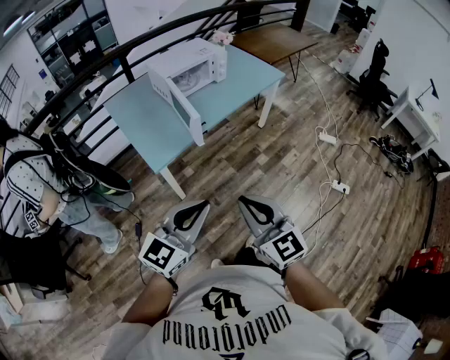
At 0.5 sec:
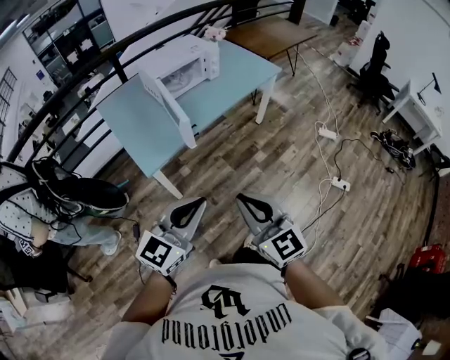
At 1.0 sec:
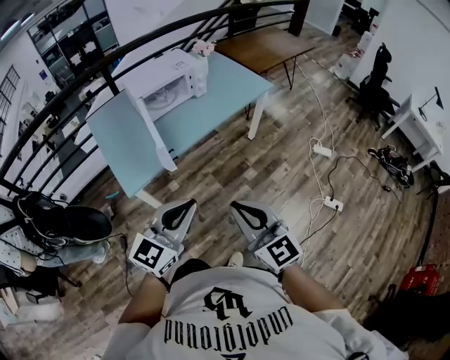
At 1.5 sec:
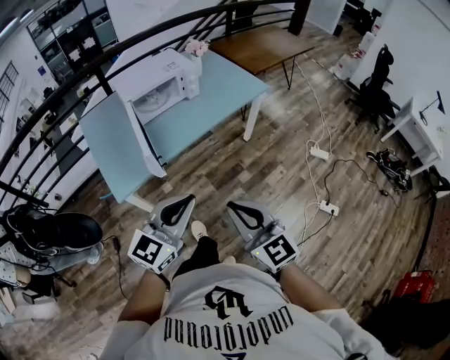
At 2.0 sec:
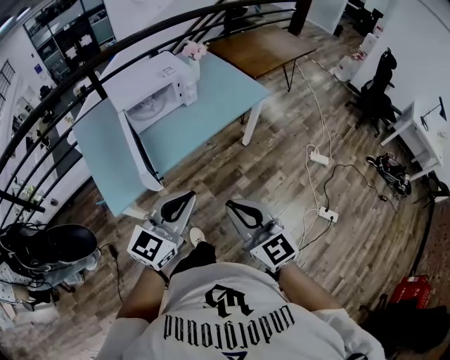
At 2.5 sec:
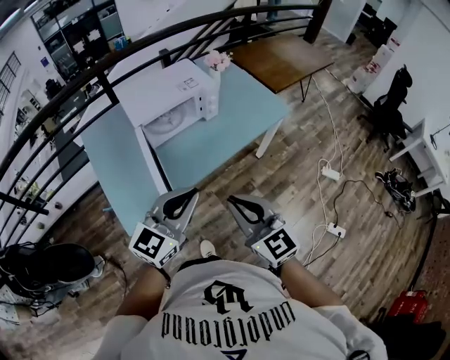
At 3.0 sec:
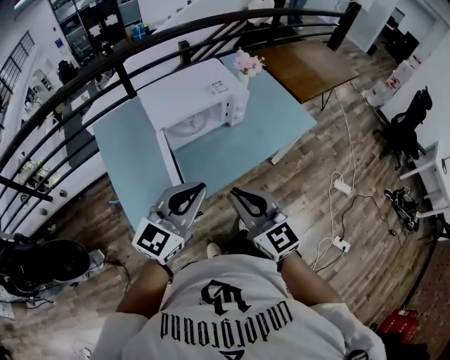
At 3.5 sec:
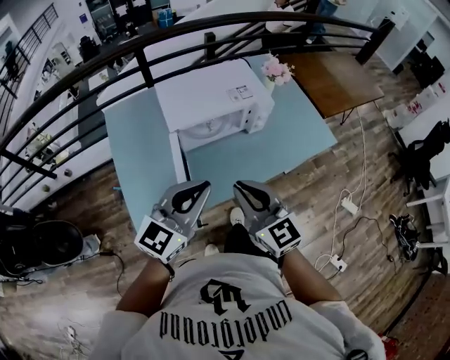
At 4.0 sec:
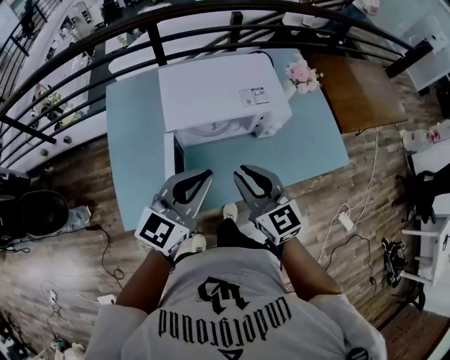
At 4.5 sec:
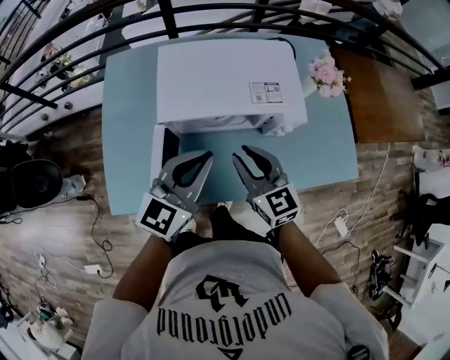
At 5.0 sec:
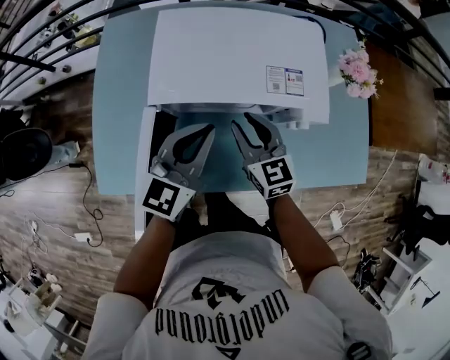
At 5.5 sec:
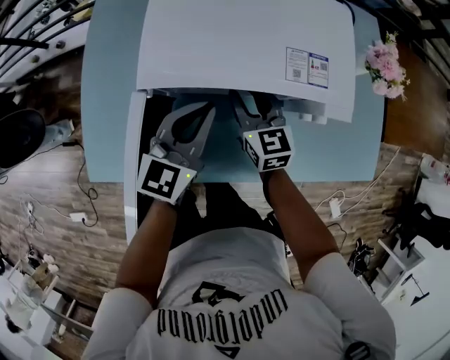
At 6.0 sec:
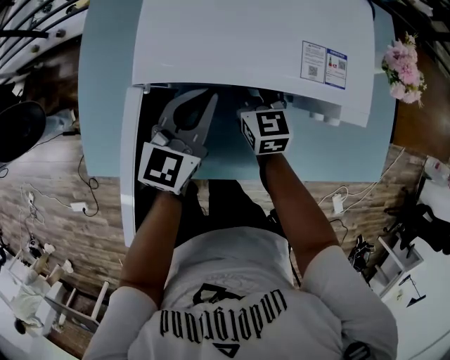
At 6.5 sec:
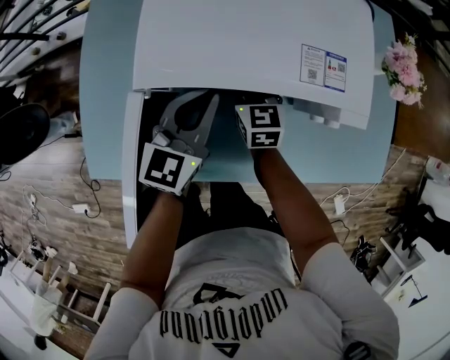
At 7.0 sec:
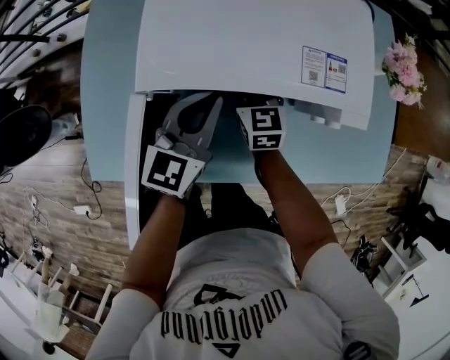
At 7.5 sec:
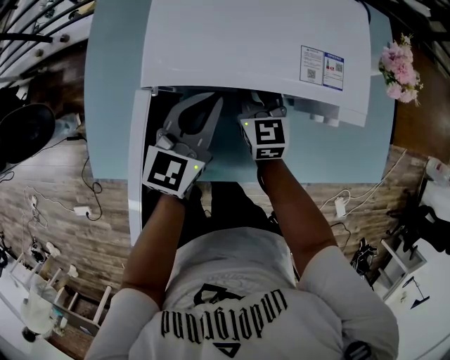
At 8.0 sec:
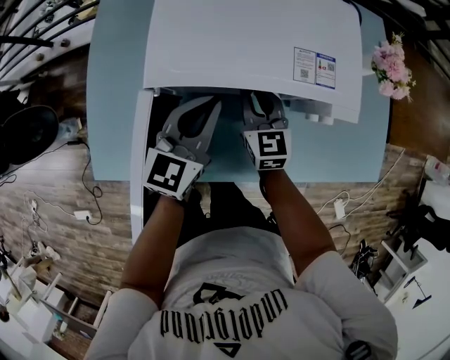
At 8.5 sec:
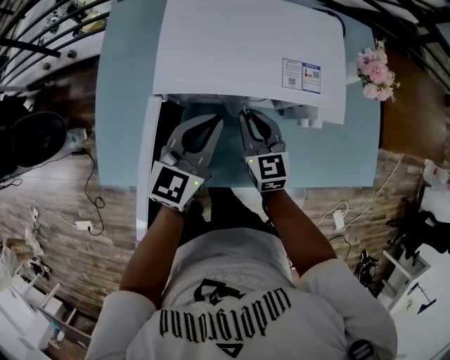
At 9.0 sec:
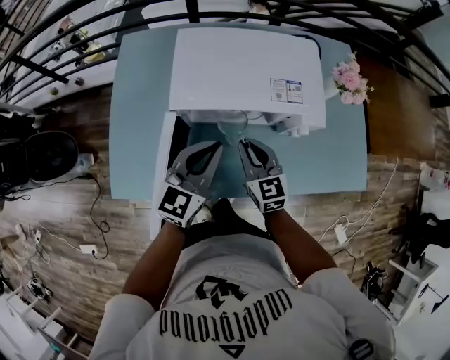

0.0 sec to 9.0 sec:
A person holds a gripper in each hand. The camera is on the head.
0.0 sec to 2.0 sec: Both grippers travel together forward and to the right, approximately 35 cm.
2.0 sec to 4.5 sec: The pair of grippers is taken roughly 50 cm. The left gripper swivels approximately 30 degrees. The right gripper turns by some 30 degrees.
4.5 sec to 7.0 sec: Both grippers travel together downward and forward, approximately 25 cm.
7.0 sec to 9.0 sec: The left gripper shifts some 15 cm upward and backward. The right gripper travels backward and upward by approximately 20 cm.

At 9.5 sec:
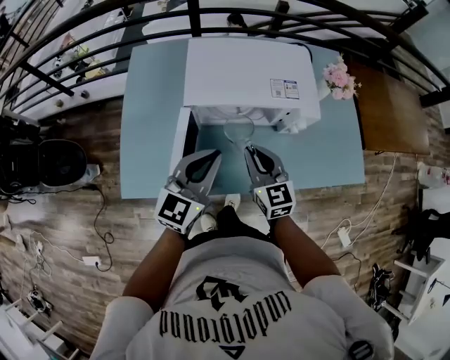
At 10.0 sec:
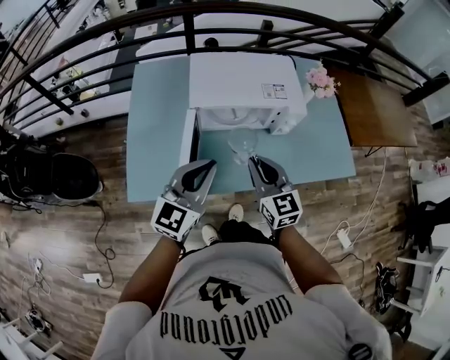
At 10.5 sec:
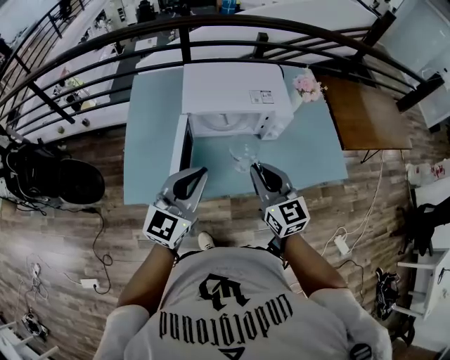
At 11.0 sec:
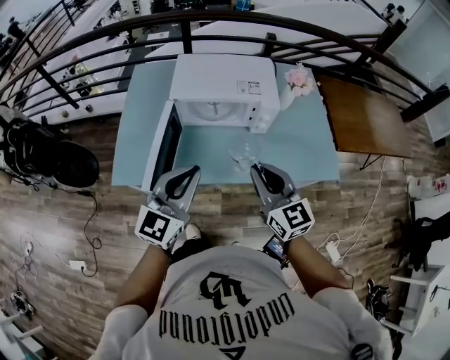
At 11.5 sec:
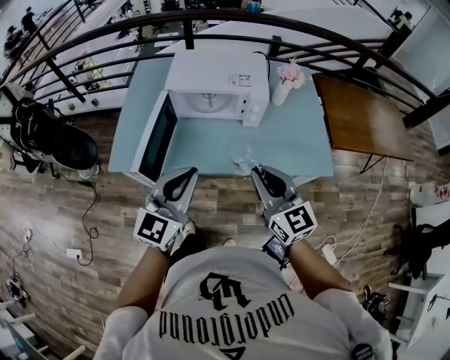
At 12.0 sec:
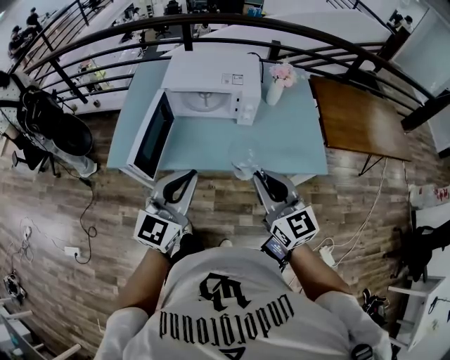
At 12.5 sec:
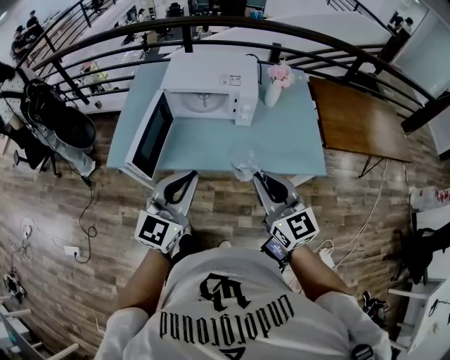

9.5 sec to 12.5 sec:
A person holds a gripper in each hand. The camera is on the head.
9.5 sec to 11.0 sec: The right gripper is displaced backward, upward and to the right by roughly 25 cm, while the left gripper heads backward and upward, covering roughly 20 cm.
11.0 sec to 12.5 sec: The grippers both shift backward and to the right by roughly 15 cm.

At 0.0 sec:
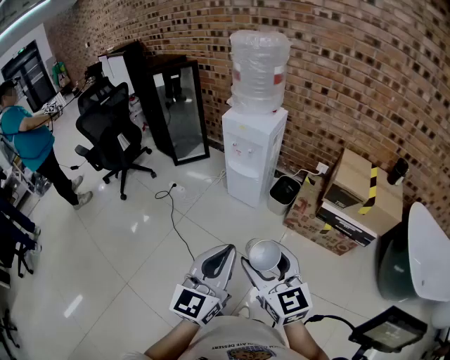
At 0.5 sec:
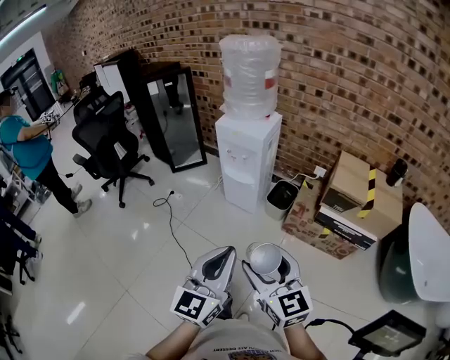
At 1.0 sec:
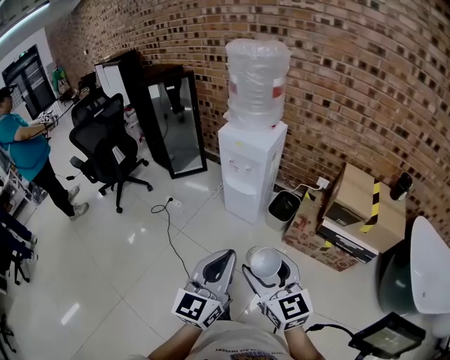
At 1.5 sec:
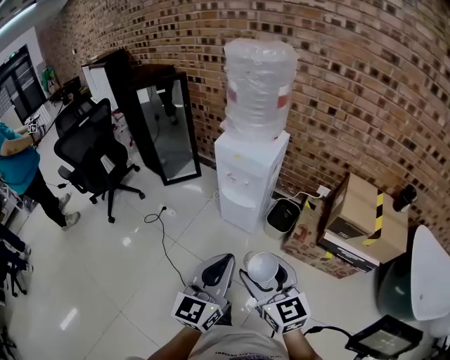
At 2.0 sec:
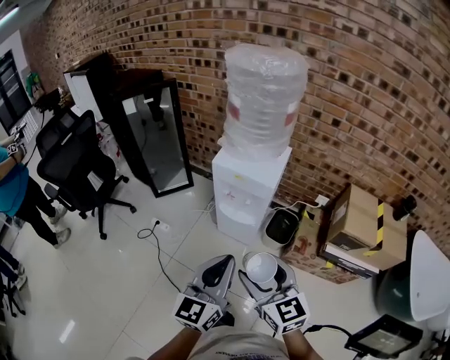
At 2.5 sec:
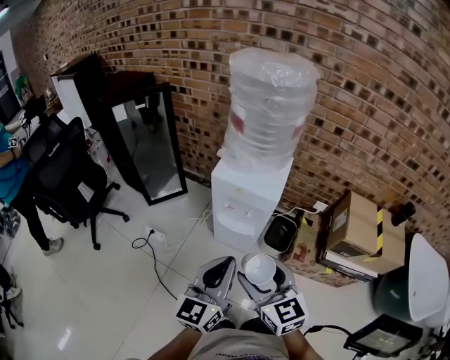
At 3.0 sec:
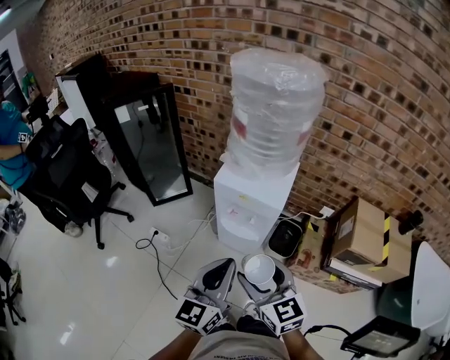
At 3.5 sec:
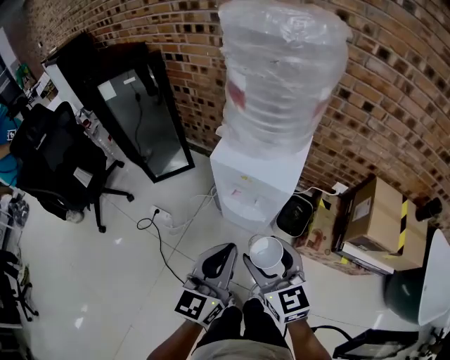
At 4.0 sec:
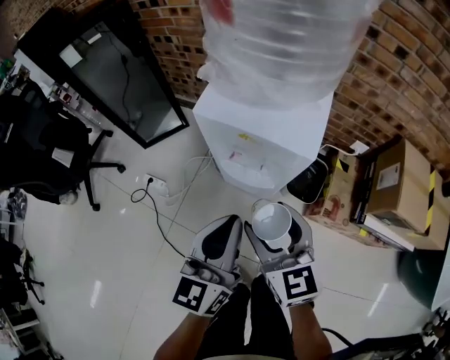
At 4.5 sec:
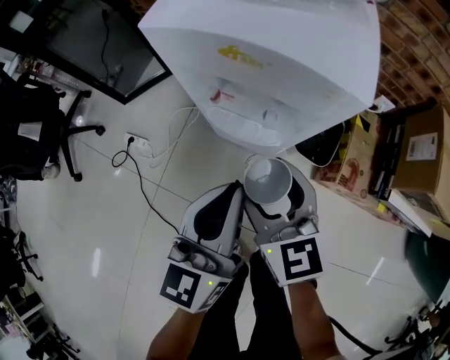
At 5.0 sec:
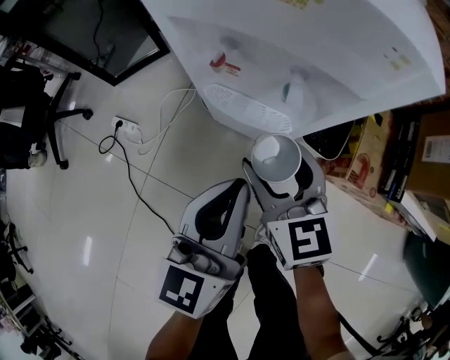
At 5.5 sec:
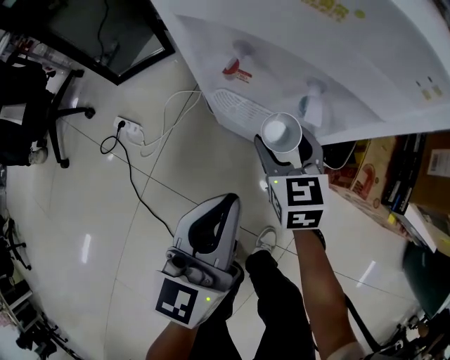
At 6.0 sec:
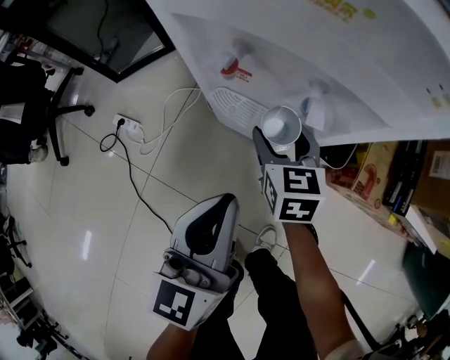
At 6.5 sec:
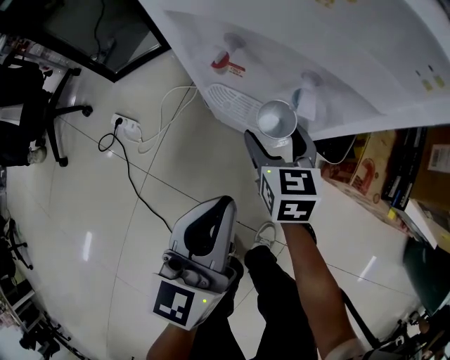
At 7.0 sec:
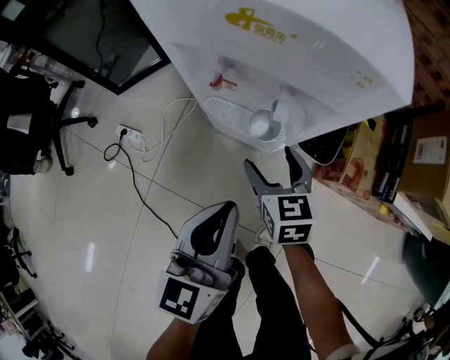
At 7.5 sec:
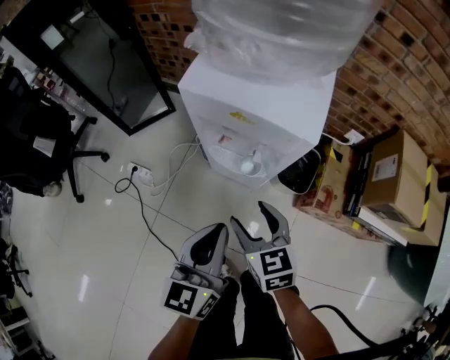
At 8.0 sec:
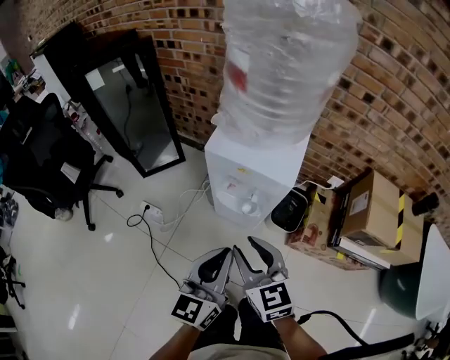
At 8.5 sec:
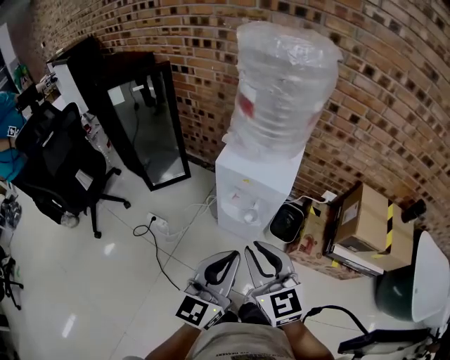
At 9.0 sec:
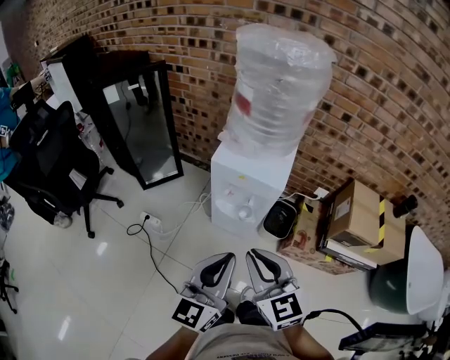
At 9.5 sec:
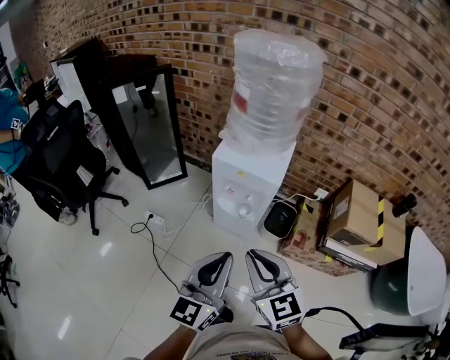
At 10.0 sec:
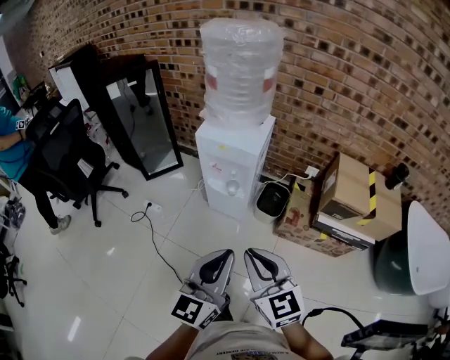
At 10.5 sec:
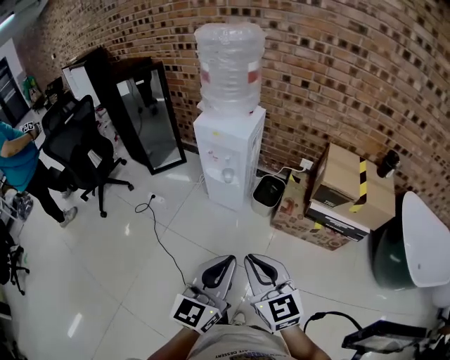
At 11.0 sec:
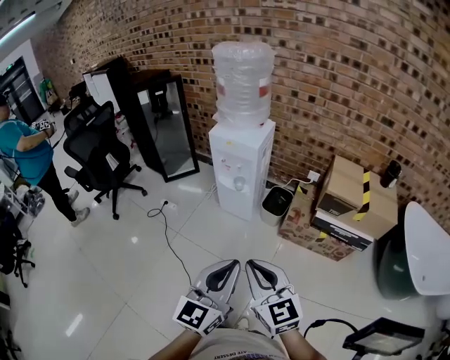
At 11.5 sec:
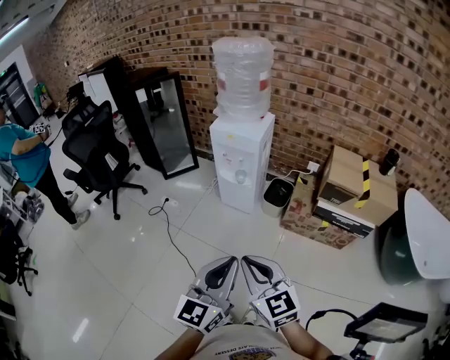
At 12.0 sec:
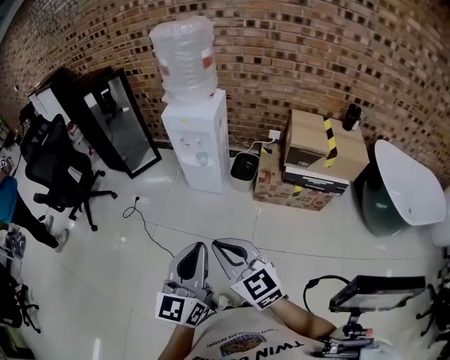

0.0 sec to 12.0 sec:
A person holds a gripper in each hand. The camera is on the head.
0.0 sec to 2.0 sec: Both grippers travel together forward, about 30 cm.
2.0 sec to 4.0 sec: Both grippers move forward and downward, approximately 25 cm.
4.0 sec to 6.0 sec: The left gripper heads downward, covering roughly 20 cm. Meanwhile the right gripper travels downward and forward by about 35 cm.
6.0 sec to 8.0 sec: The left gripper travels upward by some 25 cm. The right gripper heads upward and backward, covering approximately 40 cm, turns by about 20 degrees, and closes up.
8.0 sec to 10.0 sec: Both grippers travel together backward and upward, about 25 cm. The right gripper closes up.
10.0 sec to 12.0 sec: The two grippers go about 20 cm backward.

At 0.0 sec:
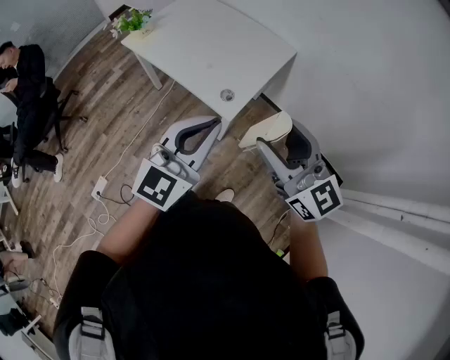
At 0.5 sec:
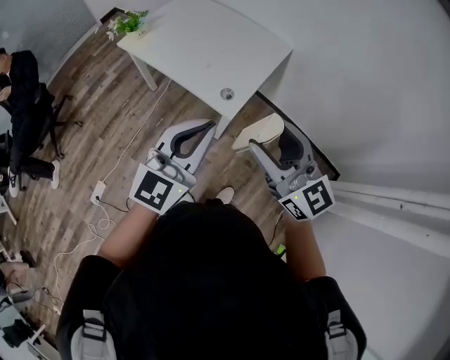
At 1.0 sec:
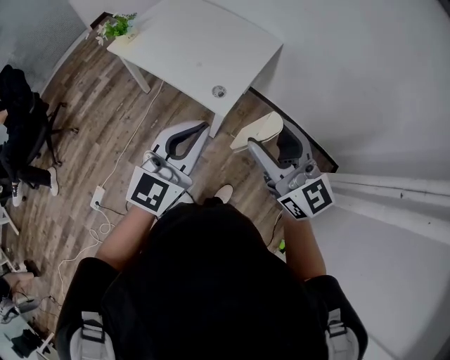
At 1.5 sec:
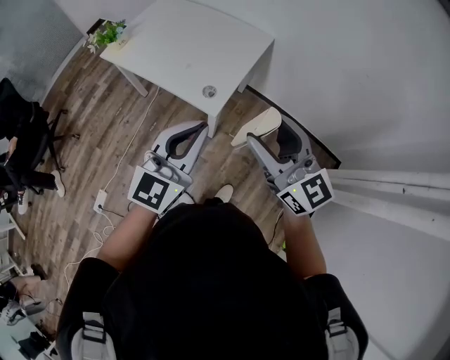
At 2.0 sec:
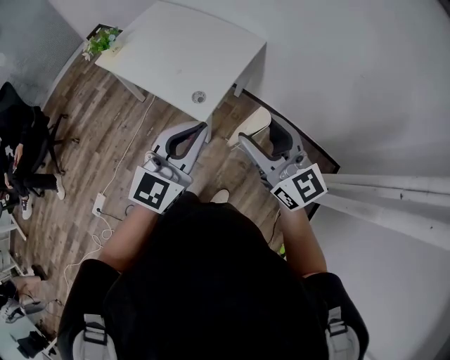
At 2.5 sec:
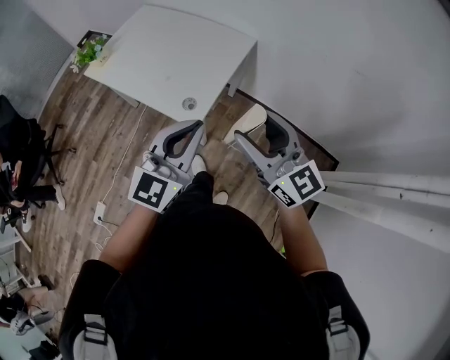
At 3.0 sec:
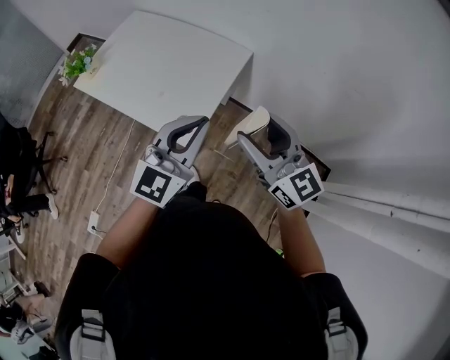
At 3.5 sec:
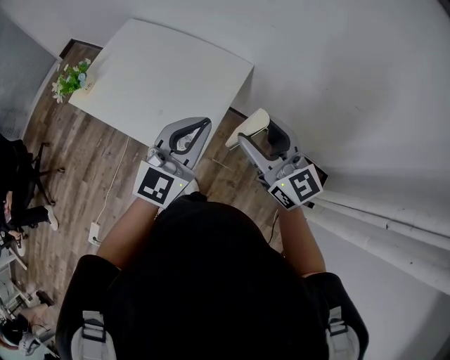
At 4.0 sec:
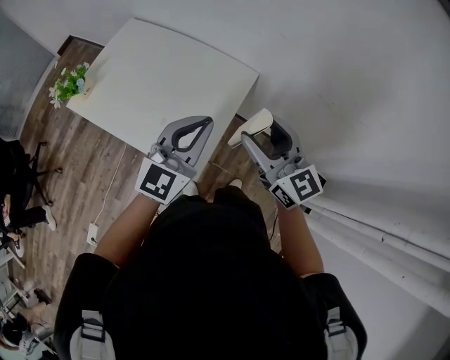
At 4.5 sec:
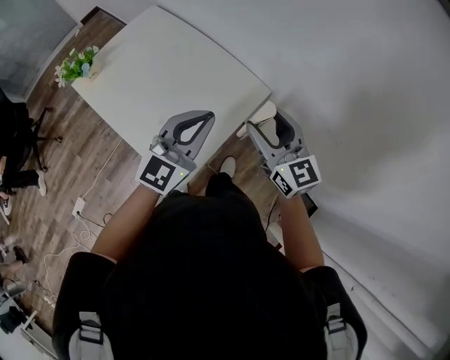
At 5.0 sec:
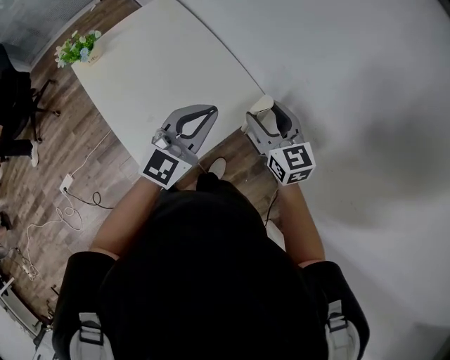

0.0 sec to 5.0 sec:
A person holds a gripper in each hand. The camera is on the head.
0.0 sec to 2.5 sec: The two grippers go some 10 cm to the right and forward.
2.5 sec to 5.0 sec: The pair of grippers is taken forward, about 50 cm. The right gripper rotates approximately 30 degrees.
